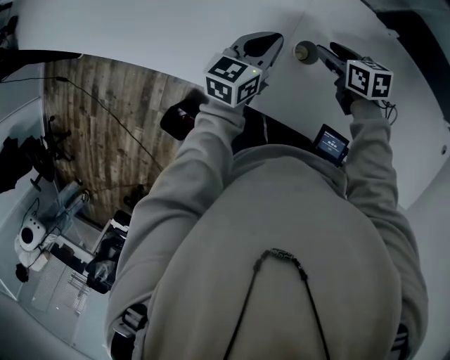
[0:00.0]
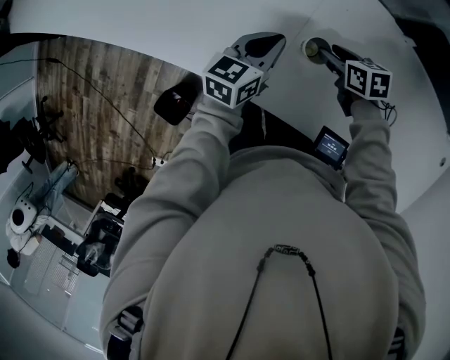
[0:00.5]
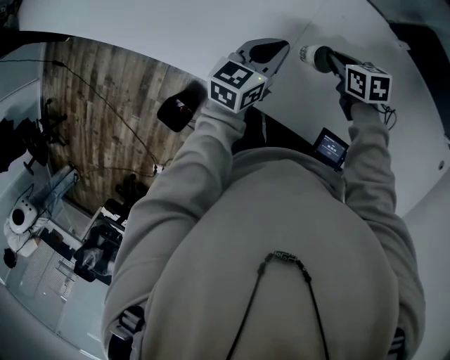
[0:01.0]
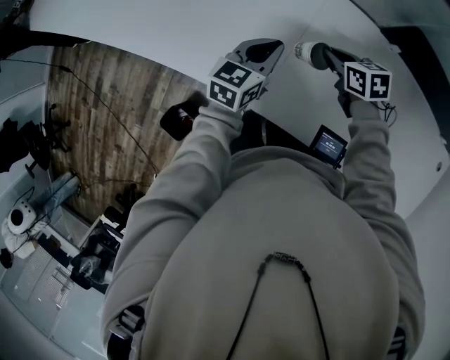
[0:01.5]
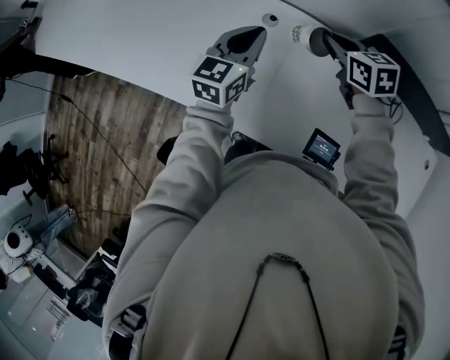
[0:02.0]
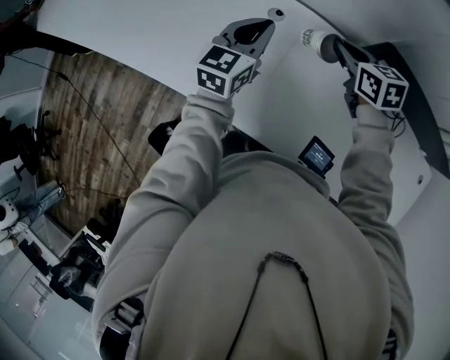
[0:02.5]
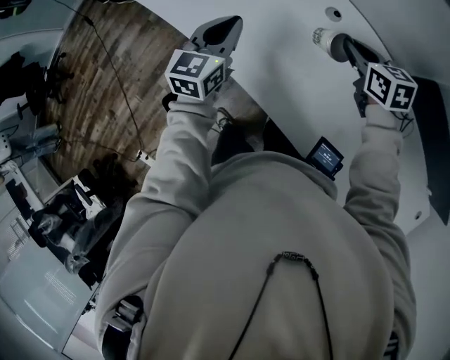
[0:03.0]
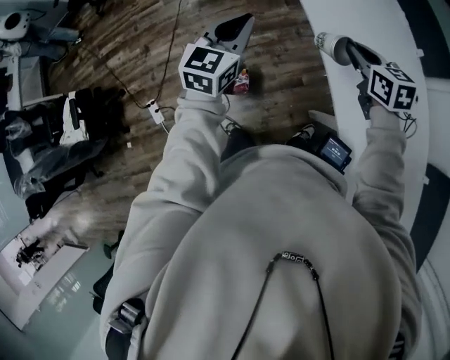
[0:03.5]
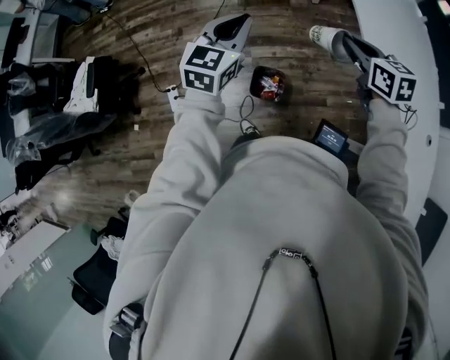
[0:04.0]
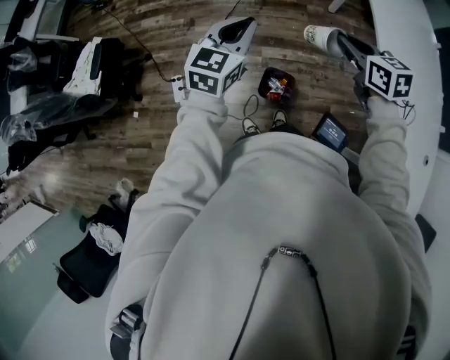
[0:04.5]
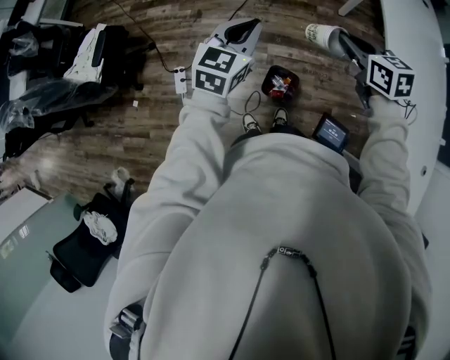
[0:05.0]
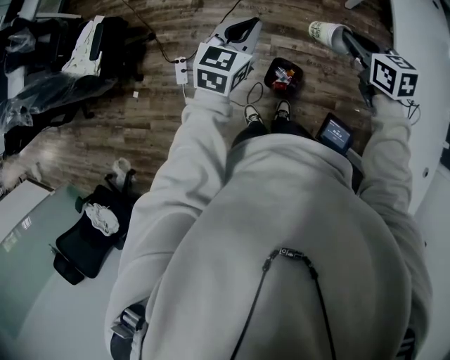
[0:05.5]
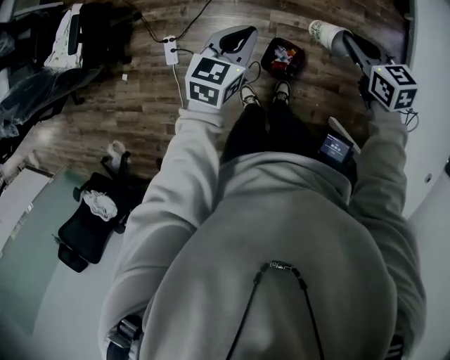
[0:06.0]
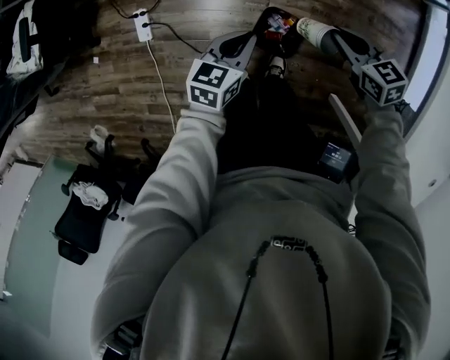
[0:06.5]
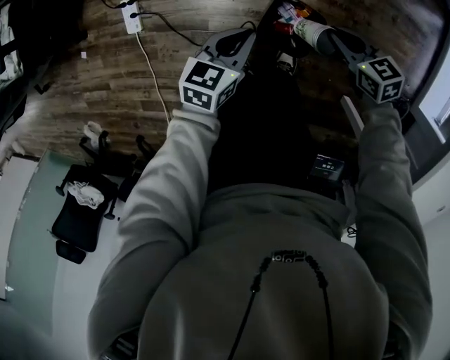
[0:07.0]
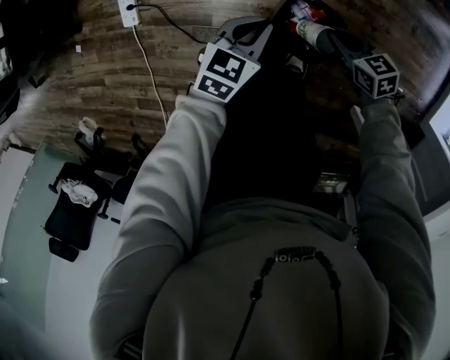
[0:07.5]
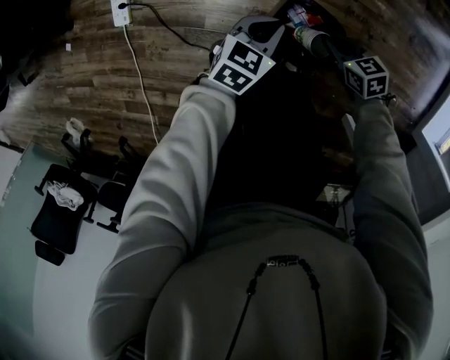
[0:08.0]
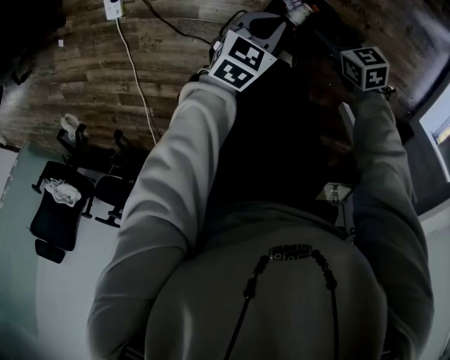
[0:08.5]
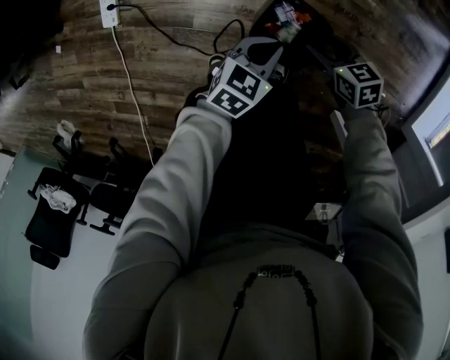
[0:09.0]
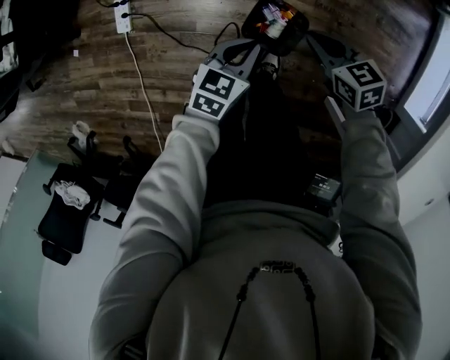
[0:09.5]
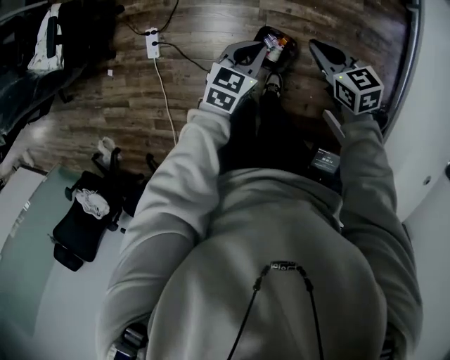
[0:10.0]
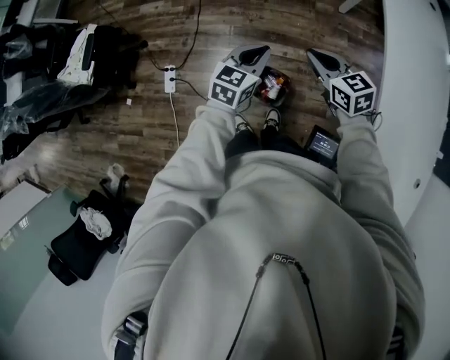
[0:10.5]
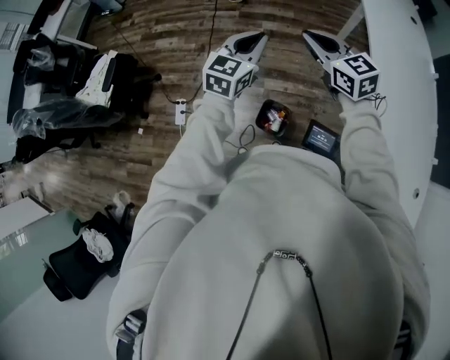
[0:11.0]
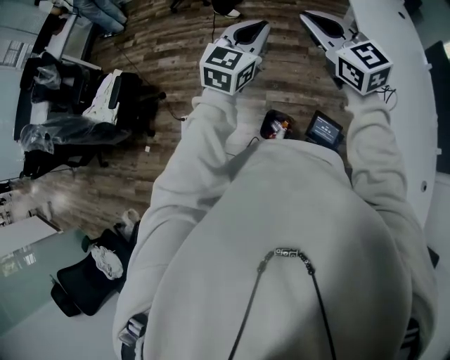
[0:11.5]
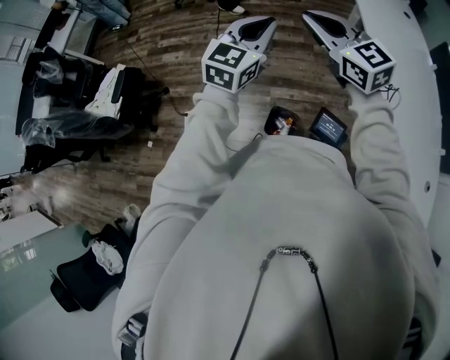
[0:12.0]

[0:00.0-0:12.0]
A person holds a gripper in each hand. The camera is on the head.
0:00.0 to 0:02.0: The grippers both shift upward by some 15 cm. The right gripper changes its angle by roughly 20 degrees, and closes.
0:02.0 to 0:04.0: Both grippers are carried roughly 80 cm. The left gripper rotates roughly 70 degrees; the right gripper swivels approximately 60 degrees.
0:04.0 to 0:06.0: The left gripper moves downward, some 20 cm, and rotates about 20 degrees; the right gripper is displaced downward, to the left and forward by about 20 cm, and changes its angle by approximately 20 degrees.
0:06.0 to 0:08.0: Both grippers move downward, some 50 cm. The right gripper turns by some 20 degrees.
0:08.0 to 0:10.0: The two grippers go some 40 cm upward. The right gripper opens, then closes once more.
0:10.0 to 0:12.0: Both grippers travel together upward, about 40 cm. The left gripper tips its fingers upward by about 30 degrees, while the right gripper tilts its fingers roughly 30 degrees upward.

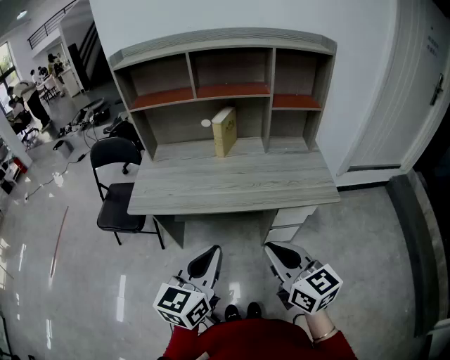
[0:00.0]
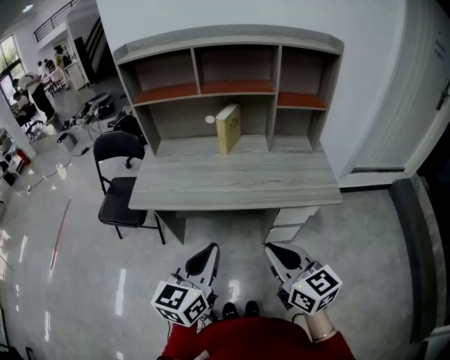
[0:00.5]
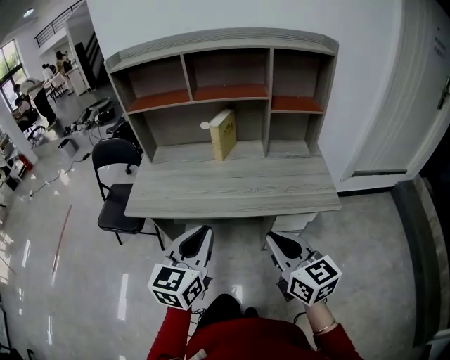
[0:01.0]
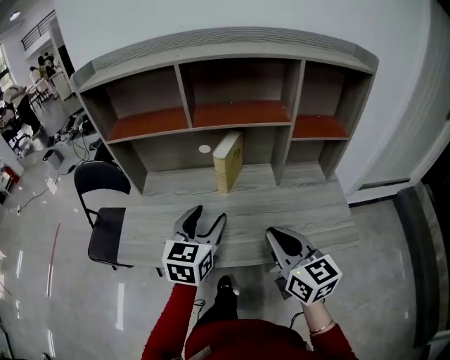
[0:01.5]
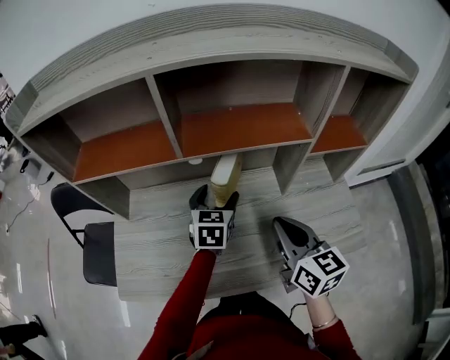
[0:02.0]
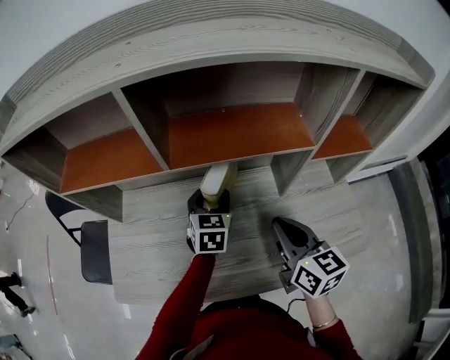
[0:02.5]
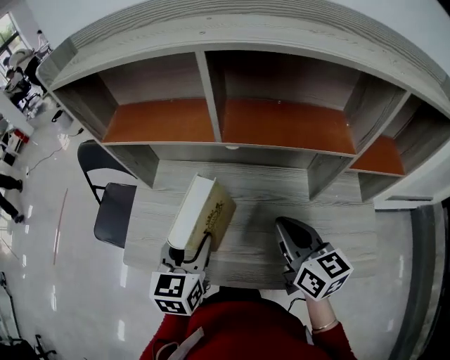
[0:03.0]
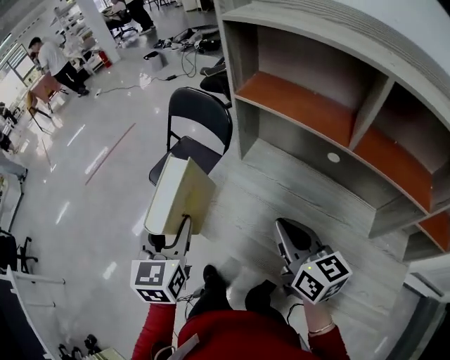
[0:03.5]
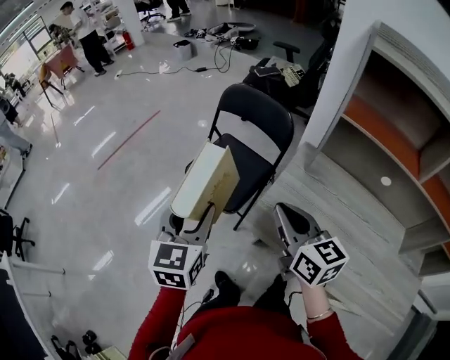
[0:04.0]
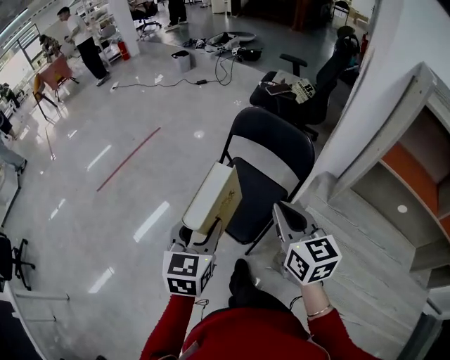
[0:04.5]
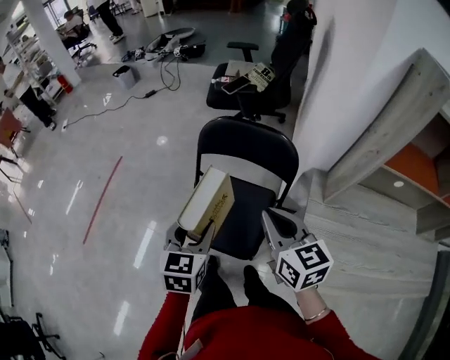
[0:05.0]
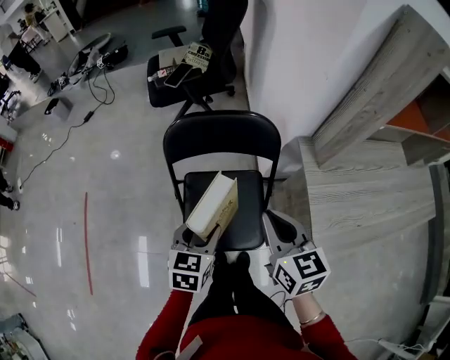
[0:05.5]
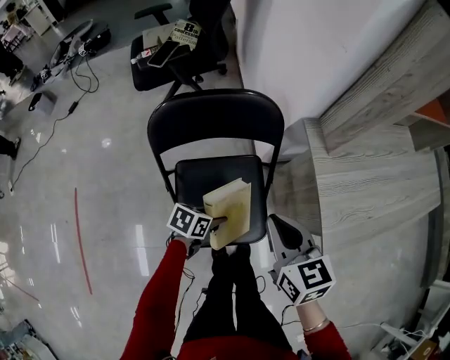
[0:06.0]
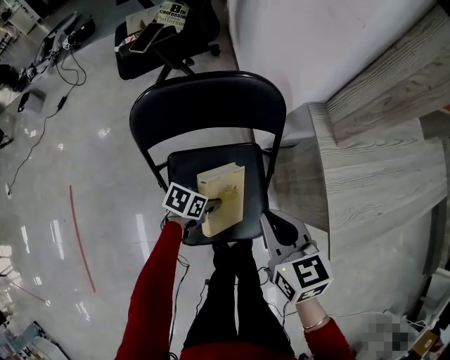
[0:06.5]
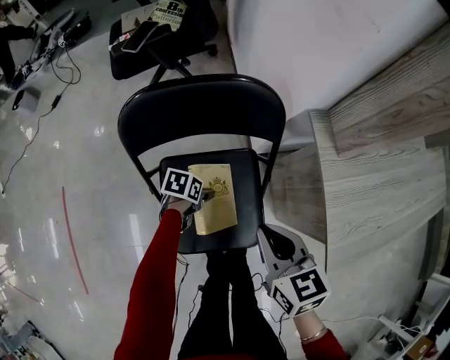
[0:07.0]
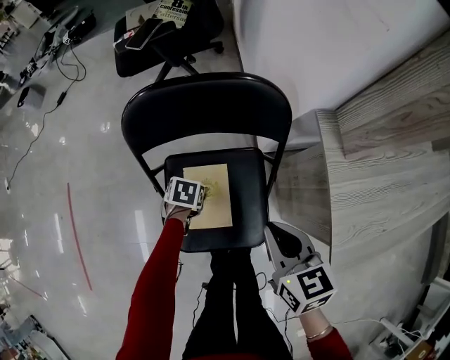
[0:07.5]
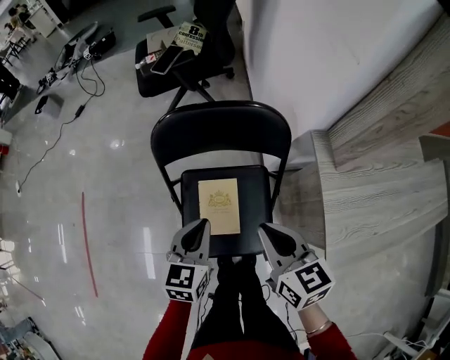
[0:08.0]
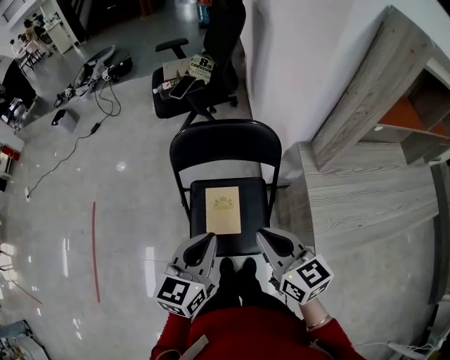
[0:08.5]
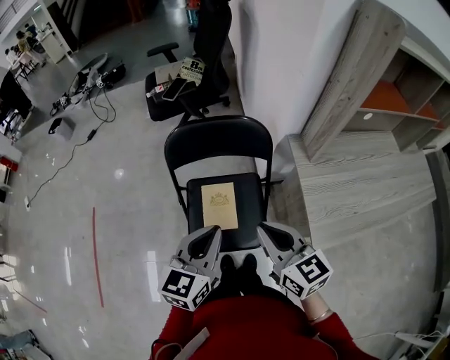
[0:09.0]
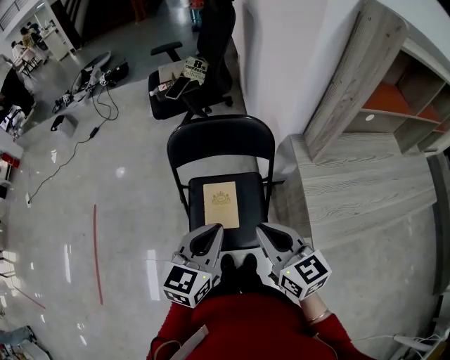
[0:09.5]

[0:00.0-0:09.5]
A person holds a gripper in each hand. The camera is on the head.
0:00.0 to 0:02.0: The grippers both shift forward by some 50 cm. The left gripper rotates about 20 degrees, and opens its fingers.
0:02.0 to 0:04.0: Both grippers are carried approximately 50 cm. The right gripper swivels approximately 50 degrees, while the left gripper turns by about 50 degrees, and closes.
0:04.0 to 0:05.5: The left gripper changes place by approximately 35 cm, and changes its angle by roughly 50 degrees, while the right gripper changes place by approximately 25 cm, and turns by some 40 degrees.
0:05.5 to 0:07.5: The left gripper goes some 30 cm downward, points its fingers some 40 degrees further downward, and opens, while the right gripper heads downward, covering approximately 10 cm.
0:07.5 to 0:09.5: The right gripper travels upward by some 15 cm, and rotates approximately 20 degrees. The left gripper goes roughly 40 cm upward, tilts its fingers roughly 60 degrees upward, and closes up.

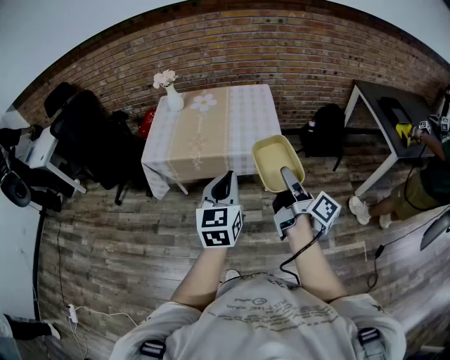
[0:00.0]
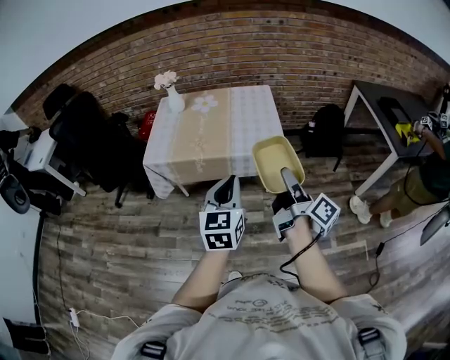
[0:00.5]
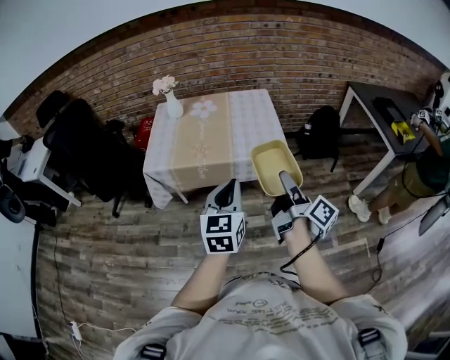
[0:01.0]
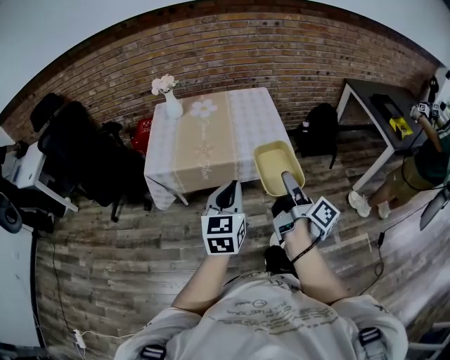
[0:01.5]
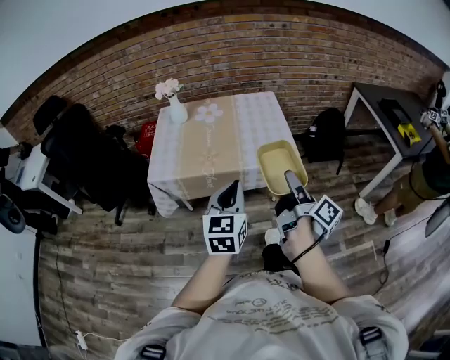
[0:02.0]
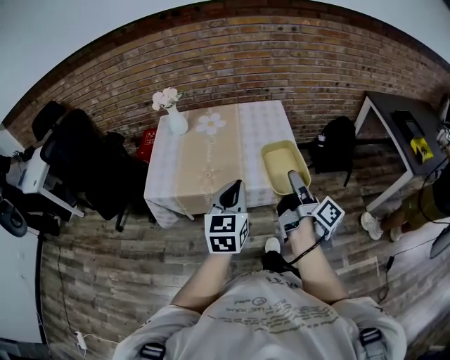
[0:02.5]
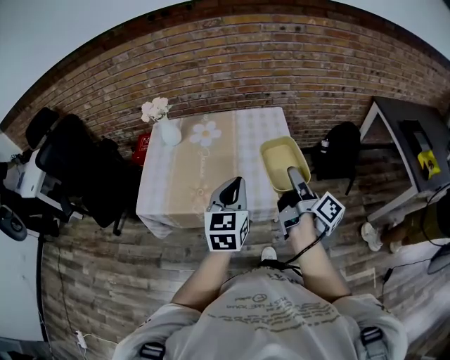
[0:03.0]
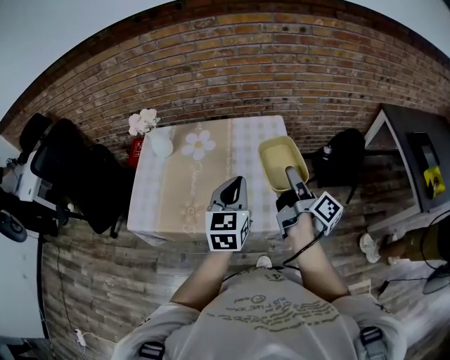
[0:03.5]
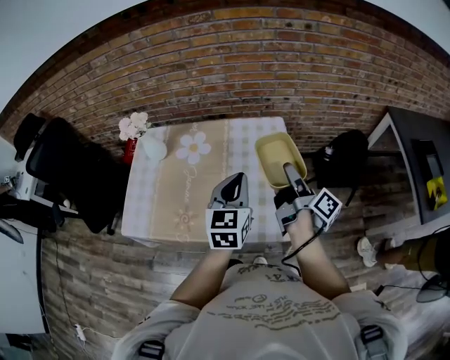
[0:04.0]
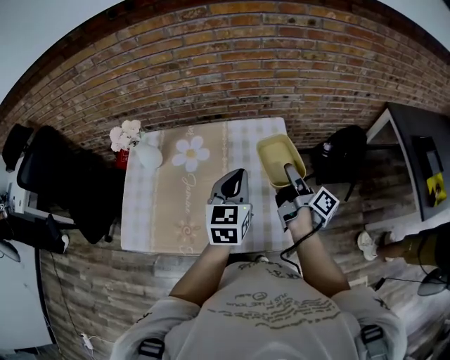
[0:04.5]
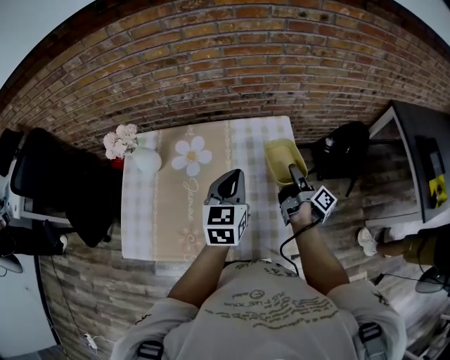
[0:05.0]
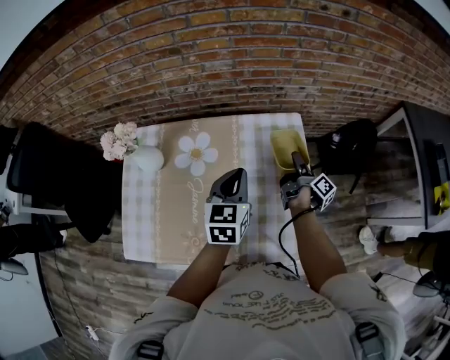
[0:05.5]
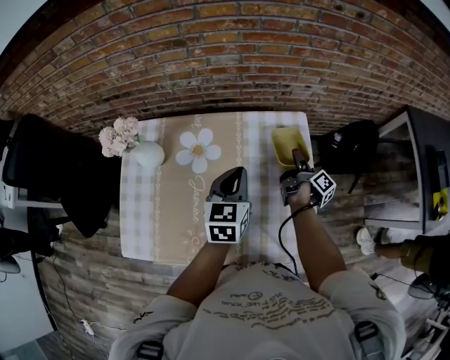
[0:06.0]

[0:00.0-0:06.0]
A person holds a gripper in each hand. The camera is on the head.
0:00.0 to 0:02.0: The grippers both shift to the left and forward by about 10 cm.
0:02.0 to 0:04.0: The two grippers travel together, forward, about 40 cm.
0:04.0 to 0:06.0: The left gripper travels forward, to the left and downward by about 20 cm; the right gripper is displaced downward and forward by some 30 cm, and turns by some 20 degrees.
